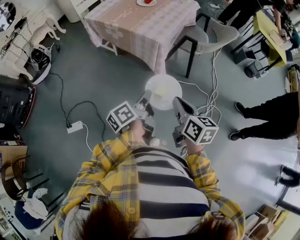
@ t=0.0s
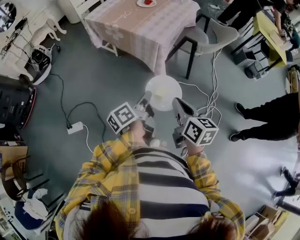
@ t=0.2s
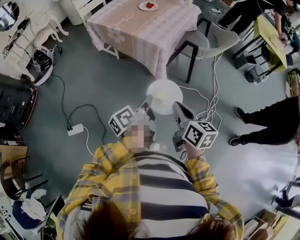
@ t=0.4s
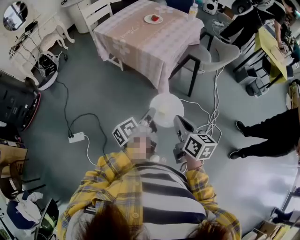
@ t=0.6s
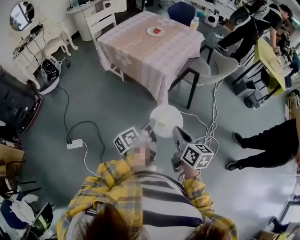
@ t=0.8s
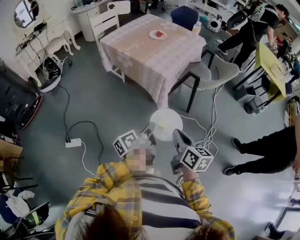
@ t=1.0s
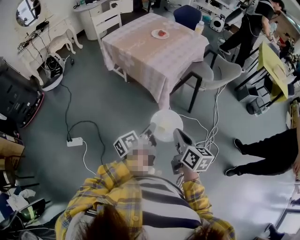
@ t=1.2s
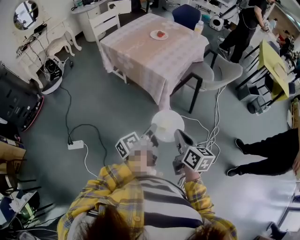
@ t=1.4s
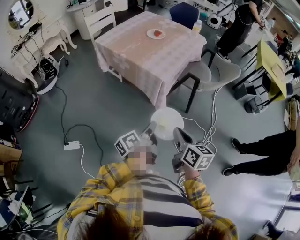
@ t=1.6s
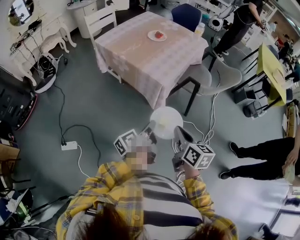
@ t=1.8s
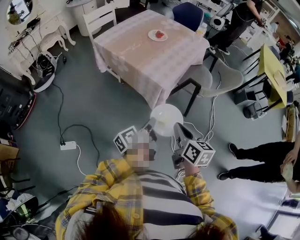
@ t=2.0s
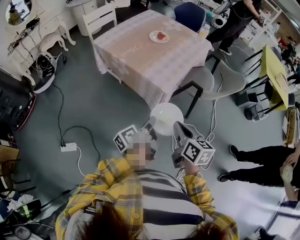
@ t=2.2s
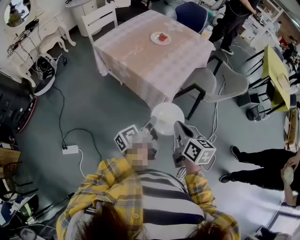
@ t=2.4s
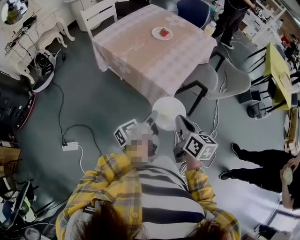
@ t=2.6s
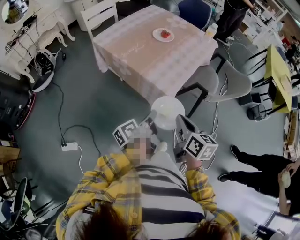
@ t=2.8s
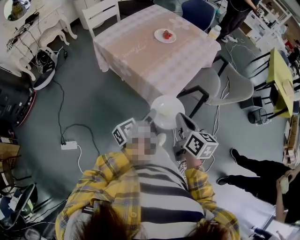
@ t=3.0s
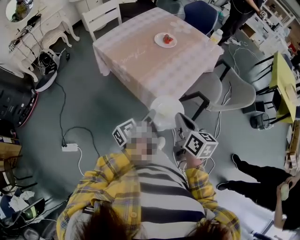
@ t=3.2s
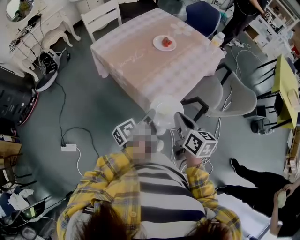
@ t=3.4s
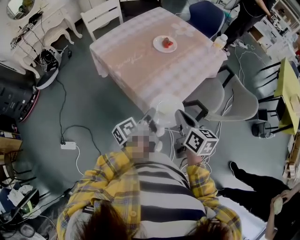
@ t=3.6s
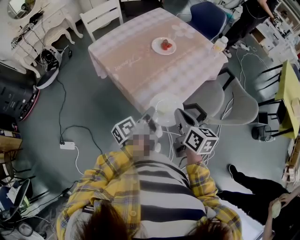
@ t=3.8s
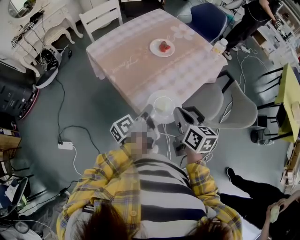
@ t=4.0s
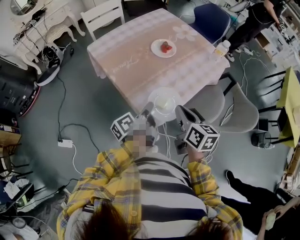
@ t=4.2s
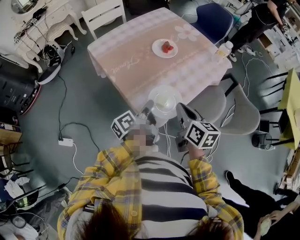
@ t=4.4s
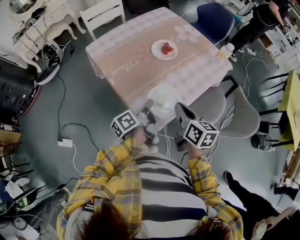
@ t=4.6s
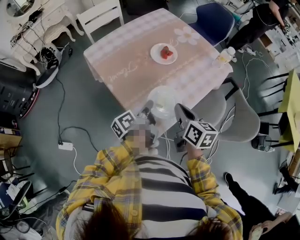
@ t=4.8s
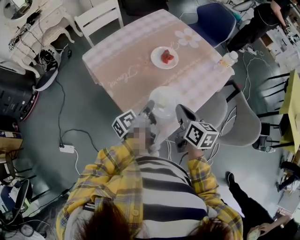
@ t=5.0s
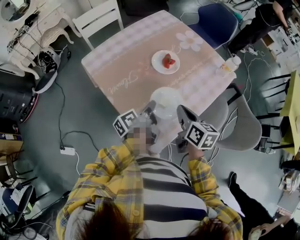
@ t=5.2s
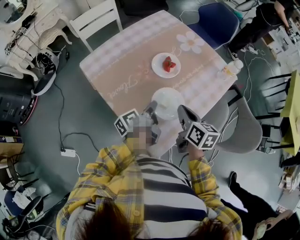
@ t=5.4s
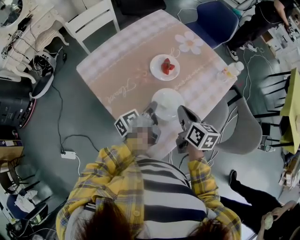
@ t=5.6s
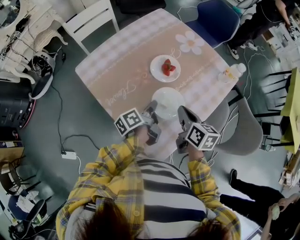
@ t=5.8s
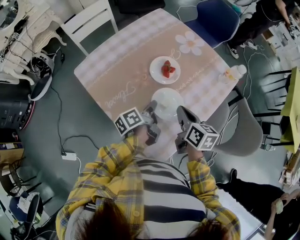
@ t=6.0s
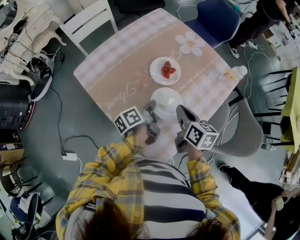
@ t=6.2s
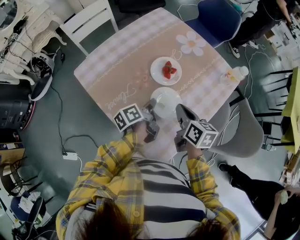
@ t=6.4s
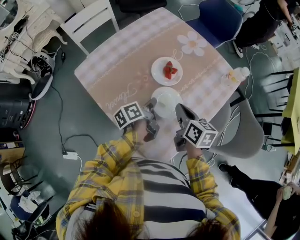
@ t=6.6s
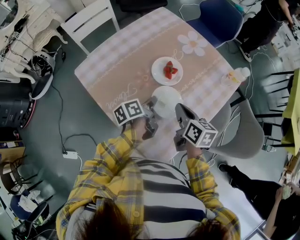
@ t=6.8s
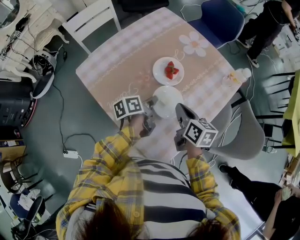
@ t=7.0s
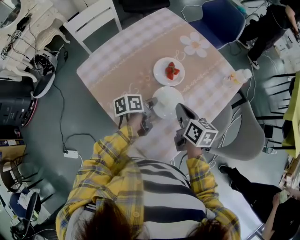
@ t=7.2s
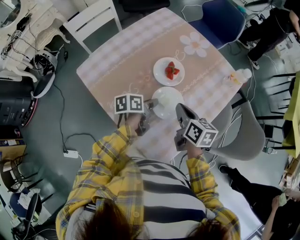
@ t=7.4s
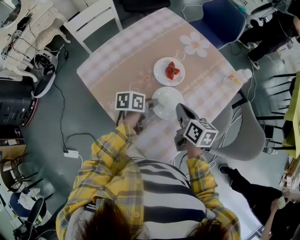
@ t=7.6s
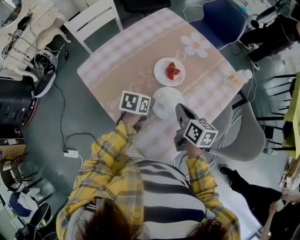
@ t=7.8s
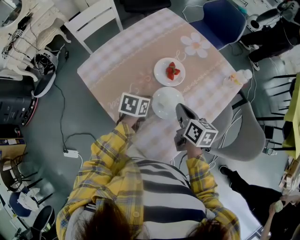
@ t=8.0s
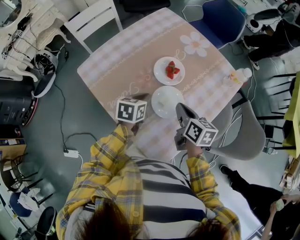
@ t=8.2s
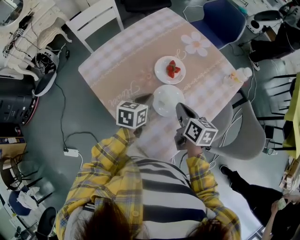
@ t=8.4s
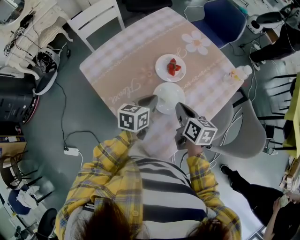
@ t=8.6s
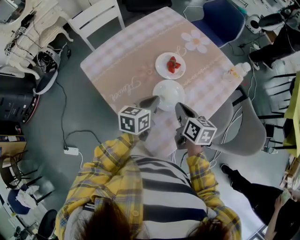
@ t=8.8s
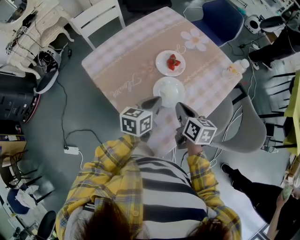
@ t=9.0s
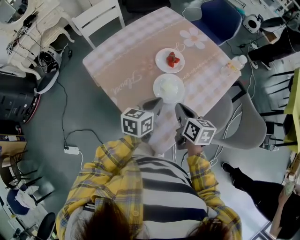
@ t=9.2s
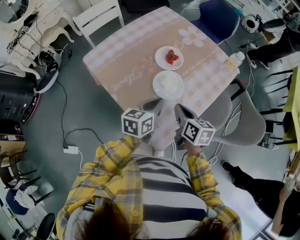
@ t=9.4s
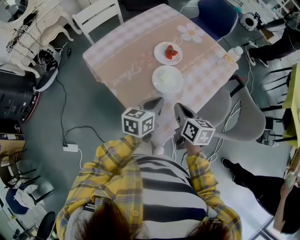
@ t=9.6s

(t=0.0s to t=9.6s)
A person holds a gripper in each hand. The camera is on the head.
t=0.0s - t=1.6s: The right gripper goes approximately 5 cm forward; the left gripper ends up about 5 cm from where it was.
t=1.6s - t=3.2s: Both grippers travel together forward, some 25 cm.
t=3.2s - t=4.8s: Both grippers move forward, approximately 20 cm.
t=4.8s - t=6.4s: The two grippers go about 15 cm forward.
t=6.4s - t=8.0s: The left gripper rotates around the line of its fingers by approximately 50 degrees, clockwise from behind.
t=8.0s - t=9.6s: The left gripper shifts some 15 cm backward, upward and to the right, and changes its angle by roughly 30 degrees, while the right gripper goes about 10 cm backward.

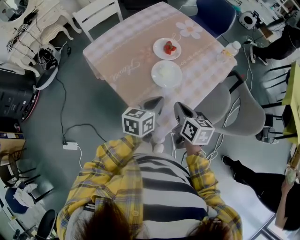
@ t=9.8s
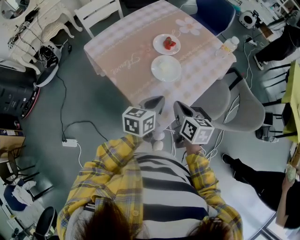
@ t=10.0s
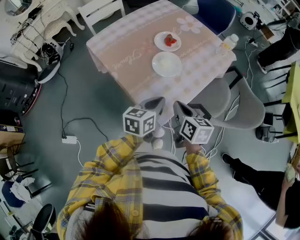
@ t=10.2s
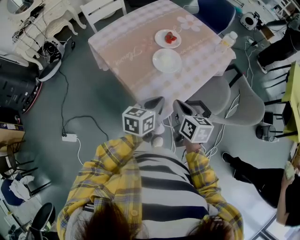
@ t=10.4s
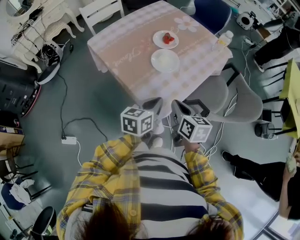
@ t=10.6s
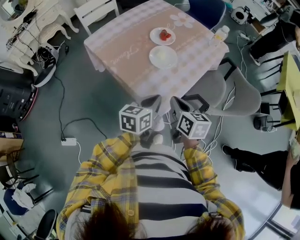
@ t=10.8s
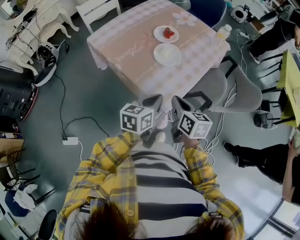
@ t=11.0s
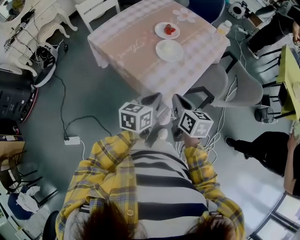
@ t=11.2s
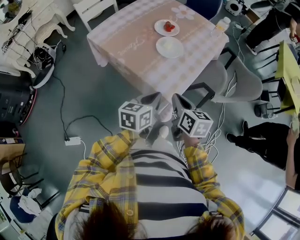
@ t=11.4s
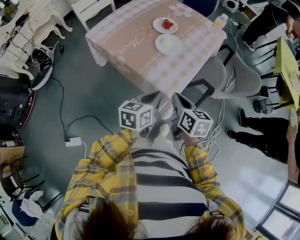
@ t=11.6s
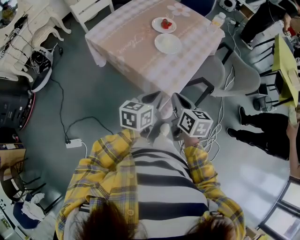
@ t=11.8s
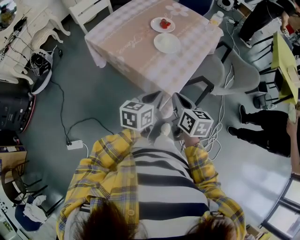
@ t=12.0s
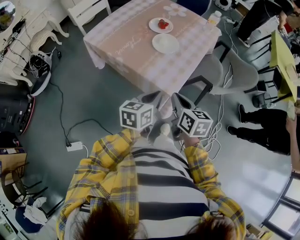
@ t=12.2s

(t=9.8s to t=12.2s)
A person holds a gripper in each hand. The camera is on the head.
t=9.8s - t=11.0s: The grippers both shift backward by roughly 10 cm.
t=11.0s - t=12.2s: Both grippers move backward, roughly 5 cm.

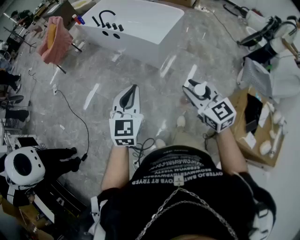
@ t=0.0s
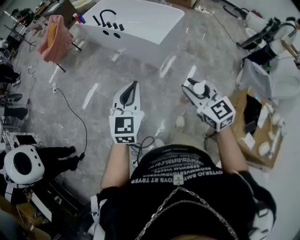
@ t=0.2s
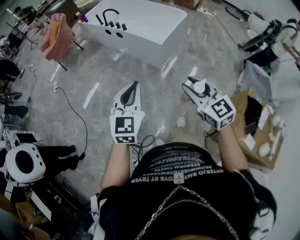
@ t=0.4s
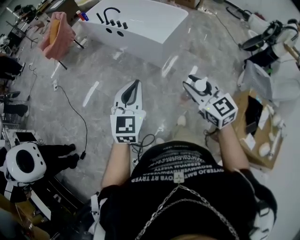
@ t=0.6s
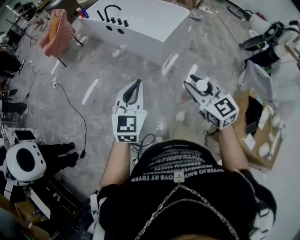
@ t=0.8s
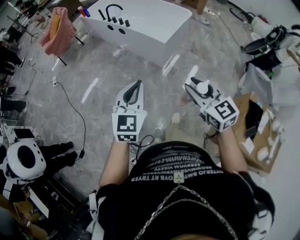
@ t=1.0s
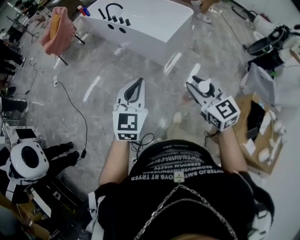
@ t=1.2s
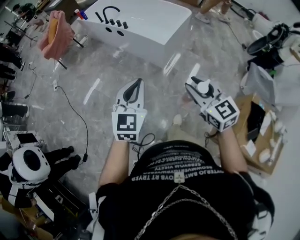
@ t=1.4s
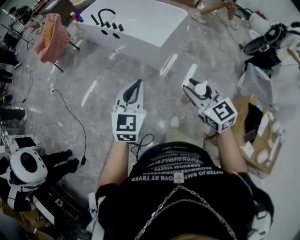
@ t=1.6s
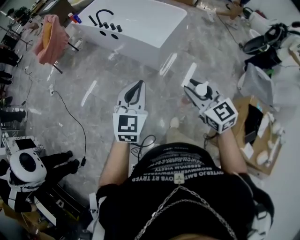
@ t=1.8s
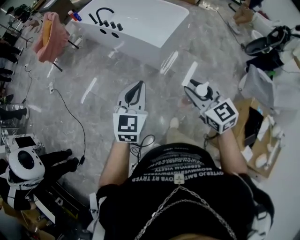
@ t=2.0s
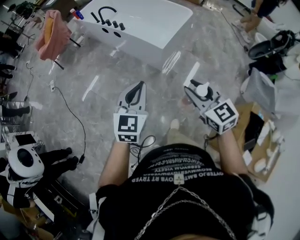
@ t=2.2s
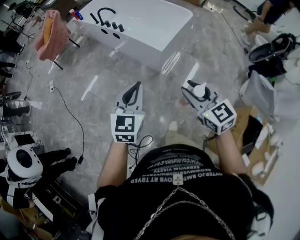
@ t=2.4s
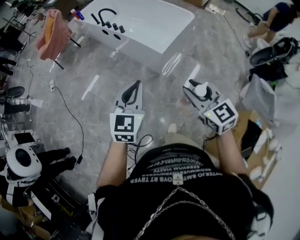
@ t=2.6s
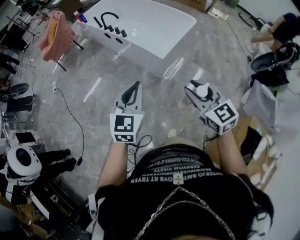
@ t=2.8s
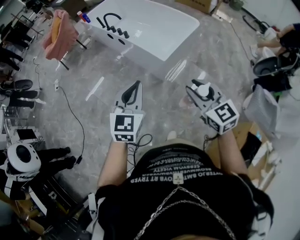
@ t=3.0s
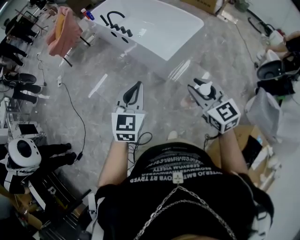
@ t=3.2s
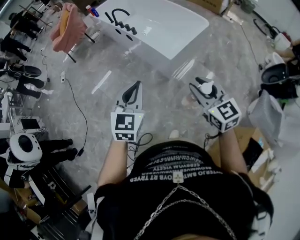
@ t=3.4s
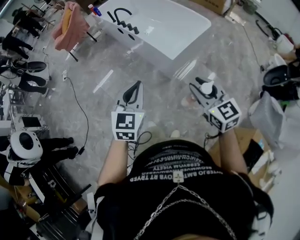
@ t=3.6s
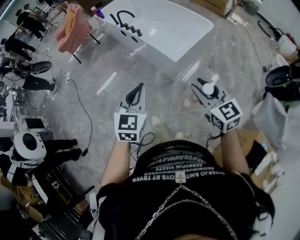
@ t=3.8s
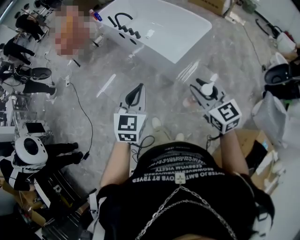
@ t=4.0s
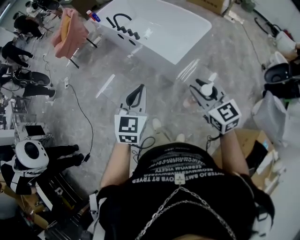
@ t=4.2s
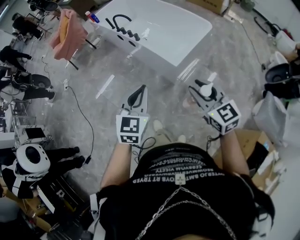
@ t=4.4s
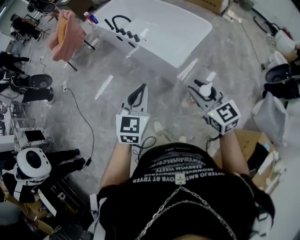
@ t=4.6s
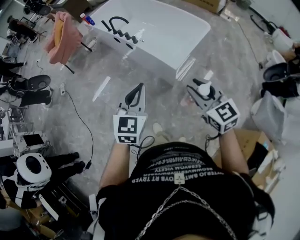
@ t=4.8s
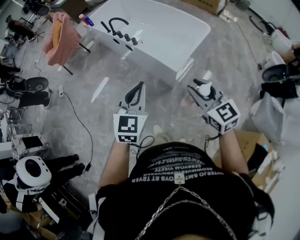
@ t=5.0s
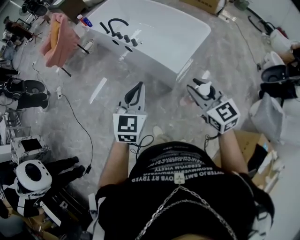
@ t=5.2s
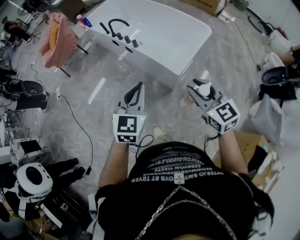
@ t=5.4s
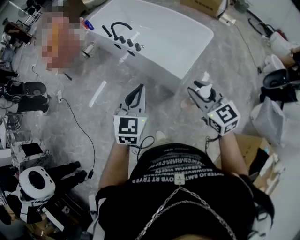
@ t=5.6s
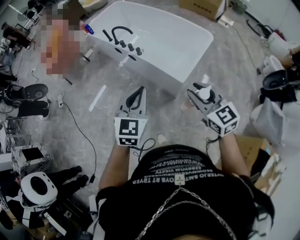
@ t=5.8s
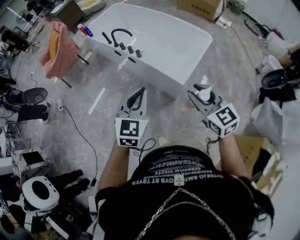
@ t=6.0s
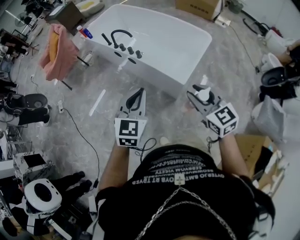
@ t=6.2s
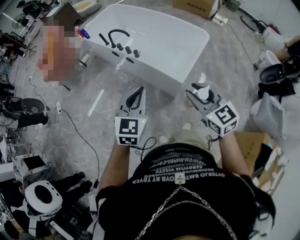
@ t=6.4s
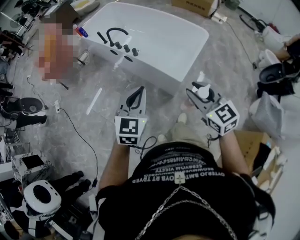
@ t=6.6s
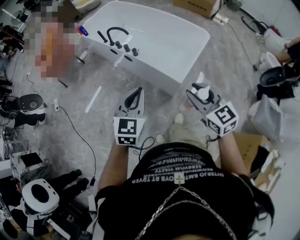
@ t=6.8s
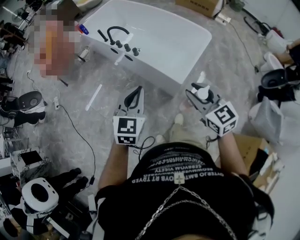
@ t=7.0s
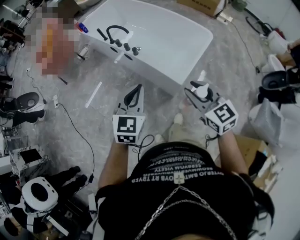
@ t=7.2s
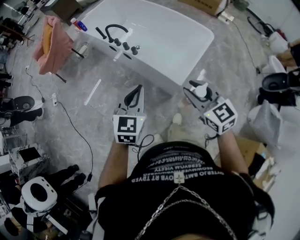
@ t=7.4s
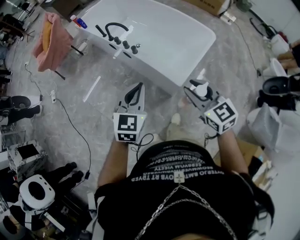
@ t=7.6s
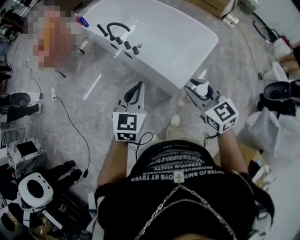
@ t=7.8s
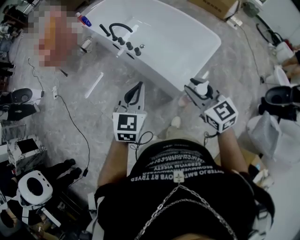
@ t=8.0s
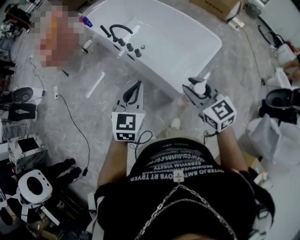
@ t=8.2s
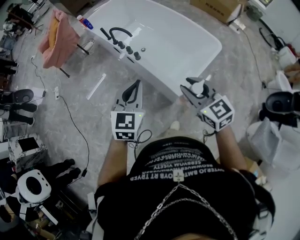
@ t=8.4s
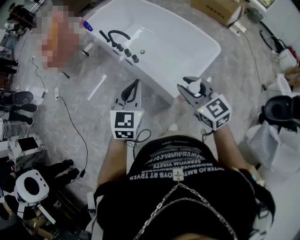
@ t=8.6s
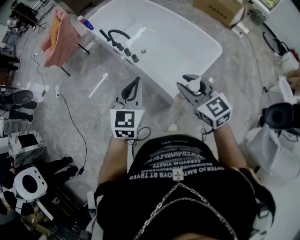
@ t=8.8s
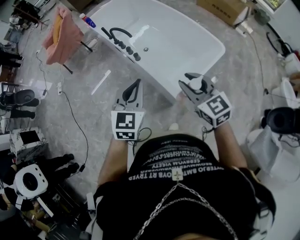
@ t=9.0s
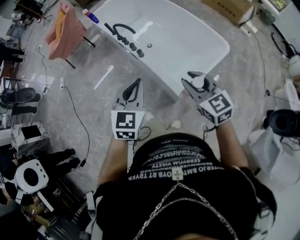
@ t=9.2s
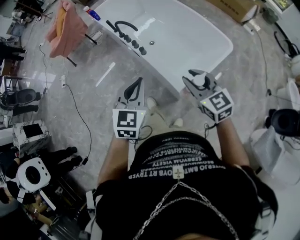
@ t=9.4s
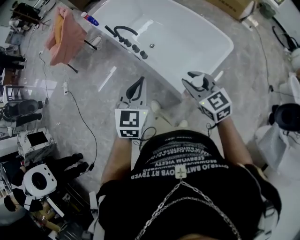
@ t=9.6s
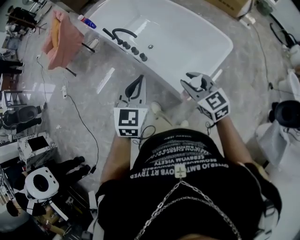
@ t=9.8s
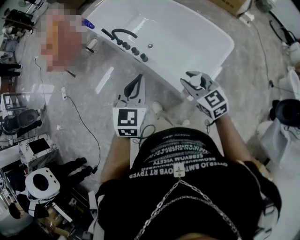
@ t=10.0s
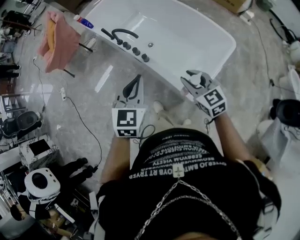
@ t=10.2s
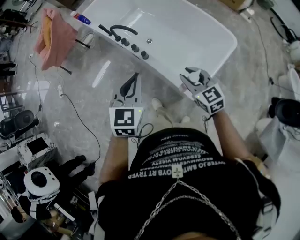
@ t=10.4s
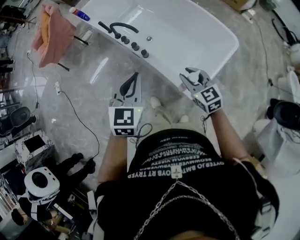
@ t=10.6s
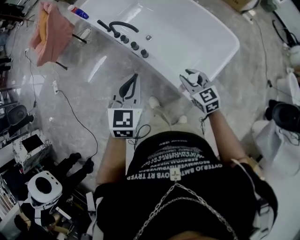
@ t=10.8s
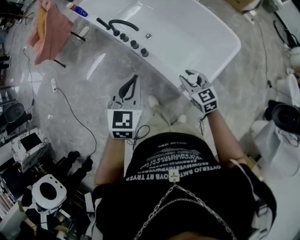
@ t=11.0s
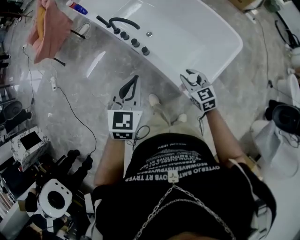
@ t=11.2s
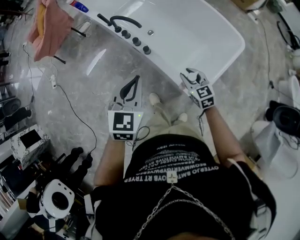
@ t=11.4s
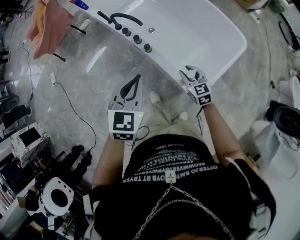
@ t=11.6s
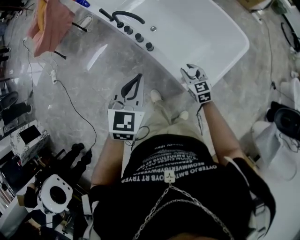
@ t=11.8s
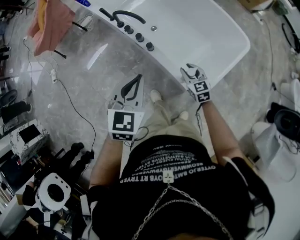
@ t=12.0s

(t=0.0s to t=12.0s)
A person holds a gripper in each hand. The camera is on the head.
t=0.0s - t=1.6s: The grippers both shift forward by about 10 cm.
t=1.6s - t=3.0s: The grippers both shift forward and to the right by roughly 15 cm.
t=3.0s - t=4.4s: Both grippers move forward, approximately 5 cm.
t=4.4s - t=6.0s: Both grippers move forward and to the left, about 20 cm.
t=6.0s - t=7.6s: The two grippers go approximately 10 cm forward.
t=7.6s - t=9.0s: The left gripper is displaced to the right and forward by about 10 cm. Meanwhile the right gripper moves forward and to the right, some 15 cm.
t=9.0s - t=10.4s: The left gripper goes approximately 15 cm forward and to the left. Meanwhile the right gripper is displaced forward and downward by approximately 20 cm.
t=10.4s - t=12.0s: The right gripper moves downward, roughly 20 cm. The left gripper is displaced downward by some 5 cm.
